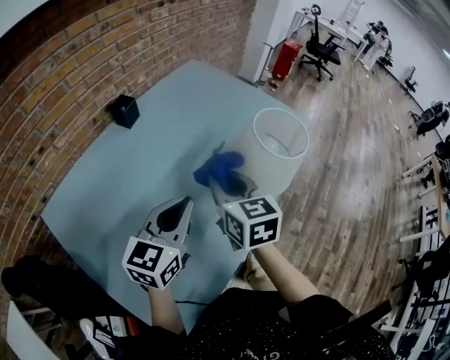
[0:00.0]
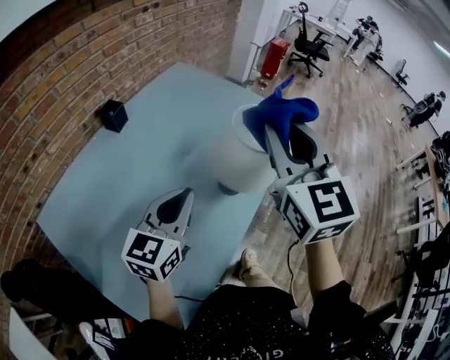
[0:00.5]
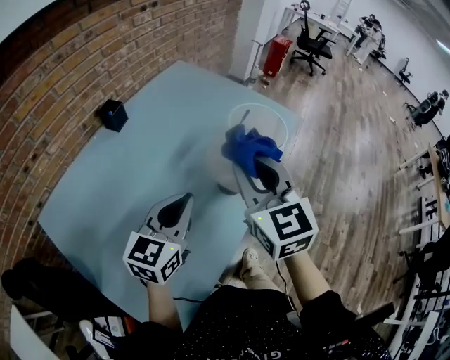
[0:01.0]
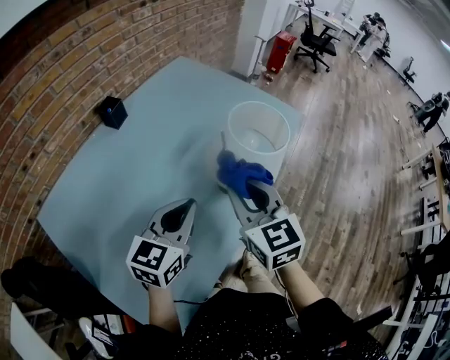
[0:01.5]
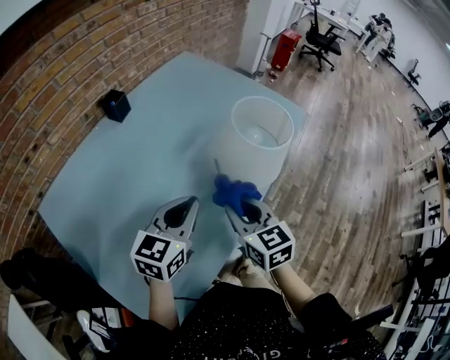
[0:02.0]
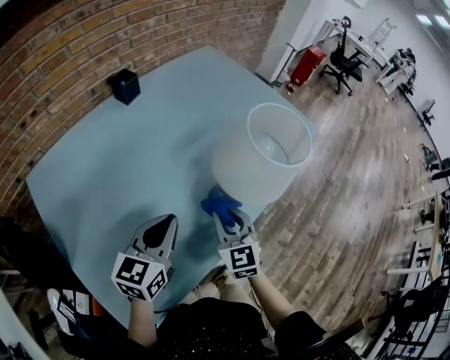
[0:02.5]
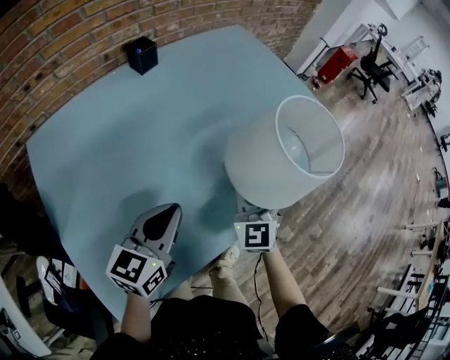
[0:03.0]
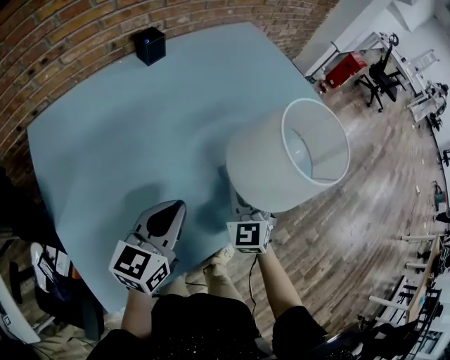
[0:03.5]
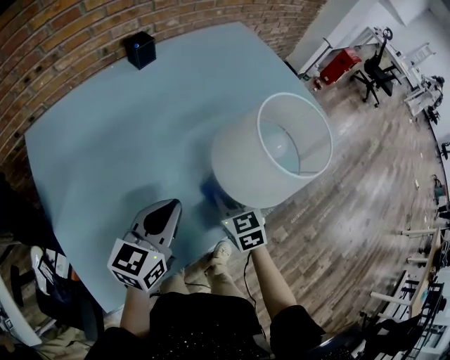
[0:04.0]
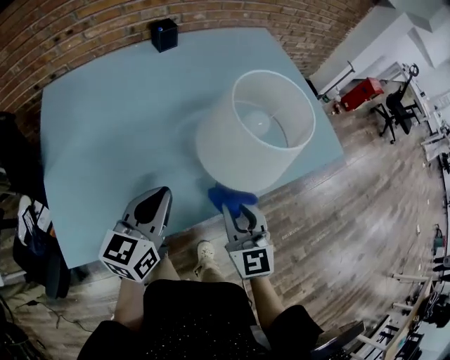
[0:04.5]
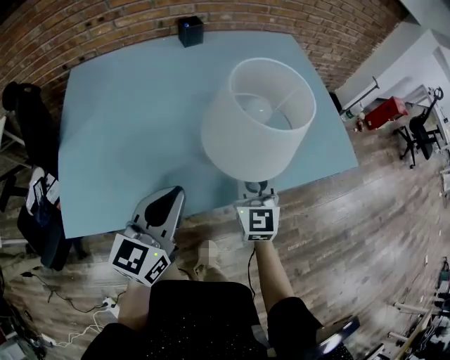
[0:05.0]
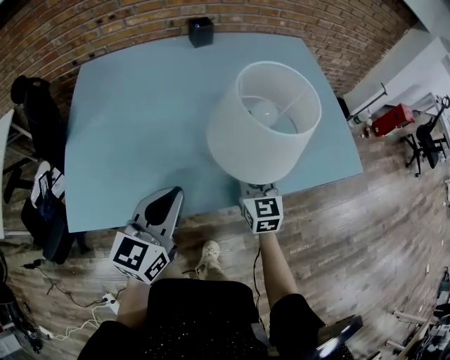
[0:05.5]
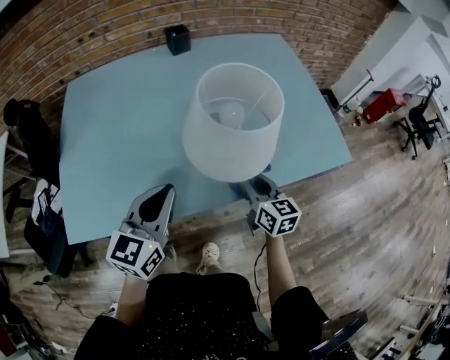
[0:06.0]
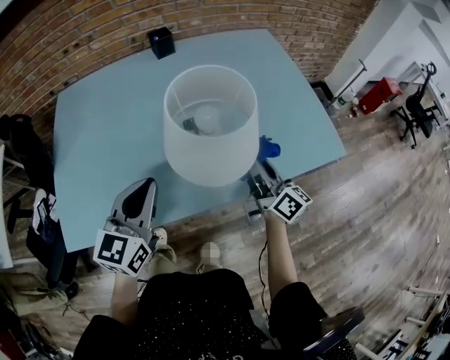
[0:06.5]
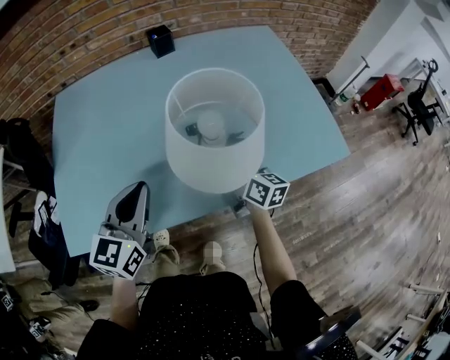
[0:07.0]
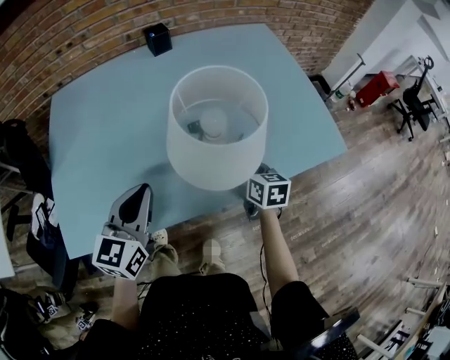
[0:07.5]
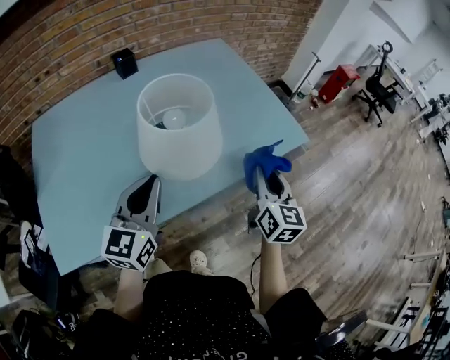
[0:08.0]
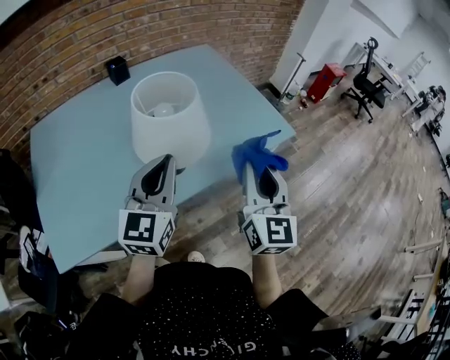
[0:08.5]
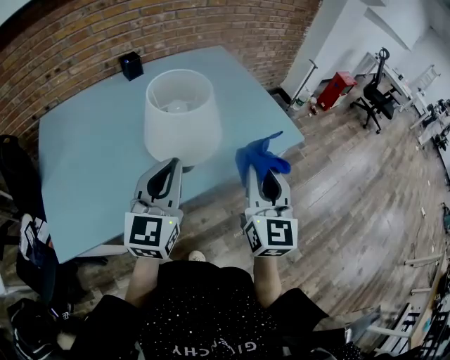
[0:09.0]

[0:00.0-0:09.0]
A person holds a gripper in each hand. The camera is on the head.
0:00.0 to 0:02.0: The left gripper goes approximately 5 cm to the right, while the right gripper travels to the right and backward by about 10 cm, and goes upward and returns, approximately 20 cm each way.
0:02.0 to 0:04.5: The right gripper moves about 15 cm, and changes its angle by roughly 30 degrees; the left gripper travels downward by some 5 cm, and changes its angle by approximately 40 degrees.
0:04.5 to 0:07.0: The right gripper is displaced forward, to the right and downward by about 15 cm, and rolls clockwise, seen from behind, by approximately 50 degrees.
0:07.0 to 0:09.0: The left gripper moves some 15 cm, while the right gripper shifts by about 30 cm, and rotates roughly 60 degrees.

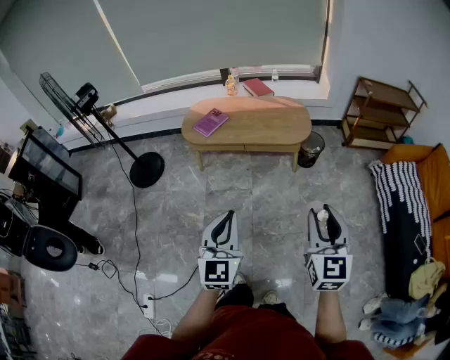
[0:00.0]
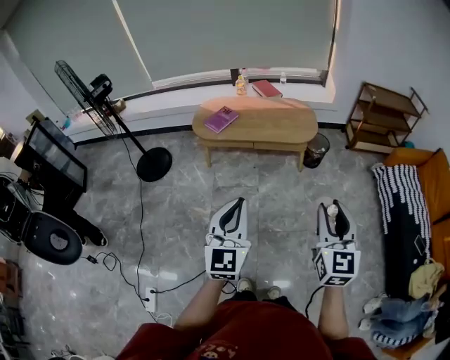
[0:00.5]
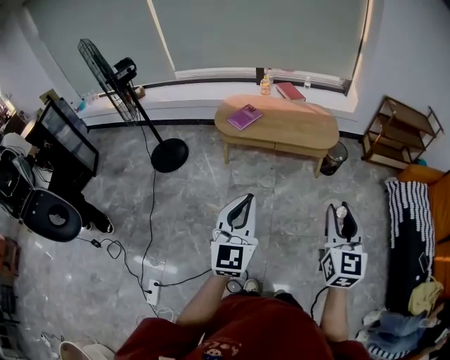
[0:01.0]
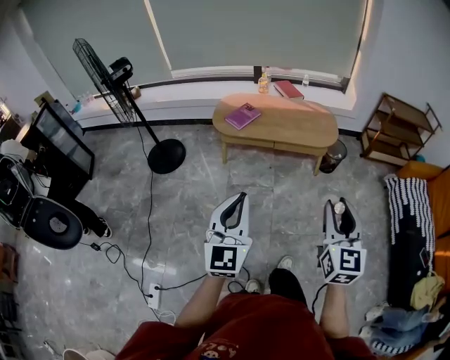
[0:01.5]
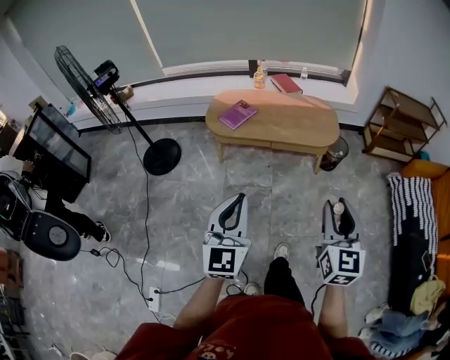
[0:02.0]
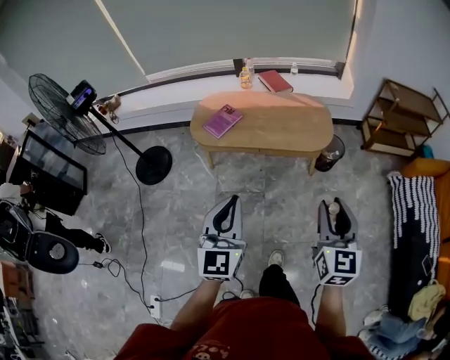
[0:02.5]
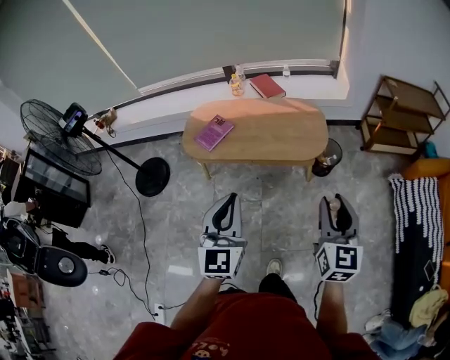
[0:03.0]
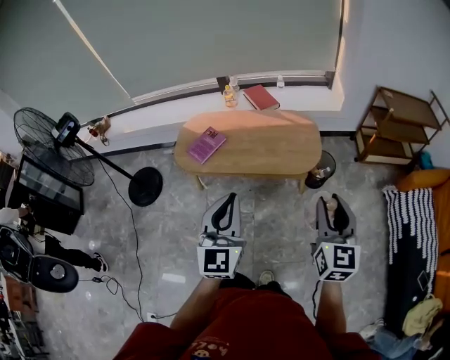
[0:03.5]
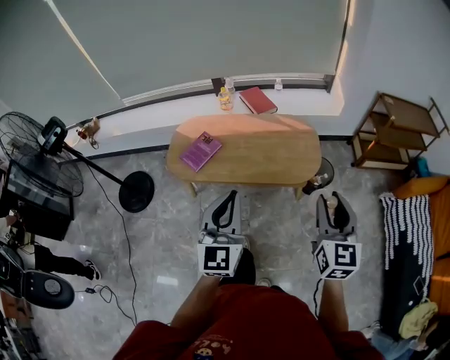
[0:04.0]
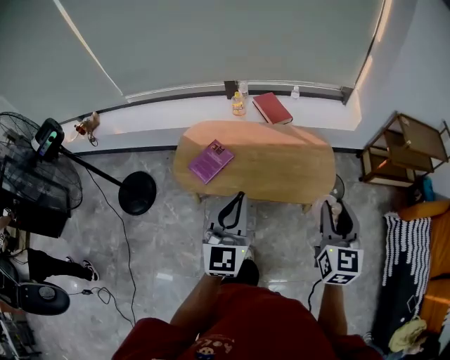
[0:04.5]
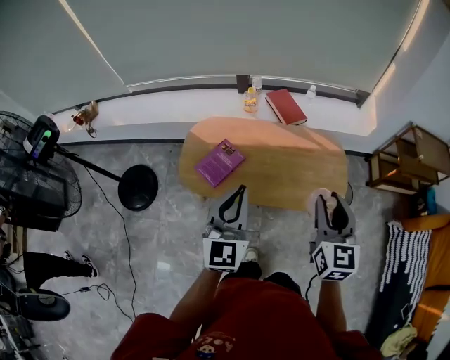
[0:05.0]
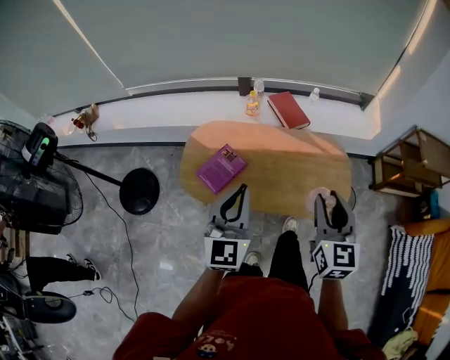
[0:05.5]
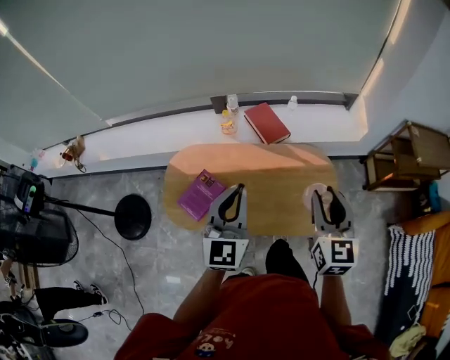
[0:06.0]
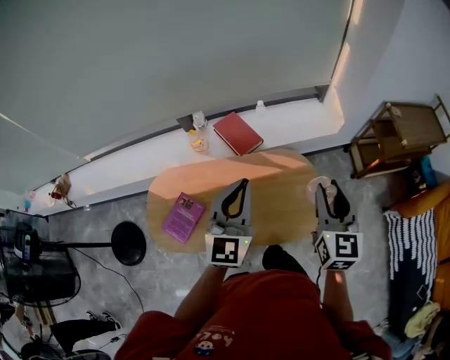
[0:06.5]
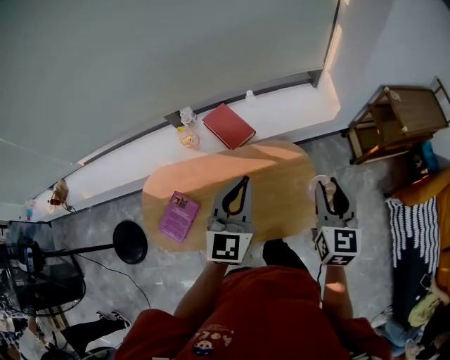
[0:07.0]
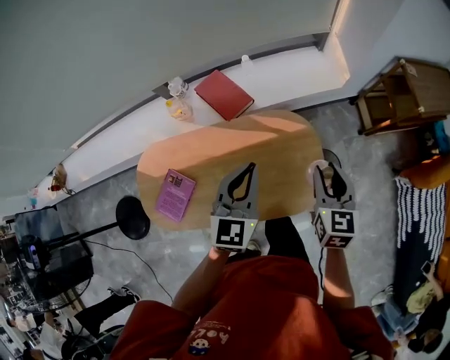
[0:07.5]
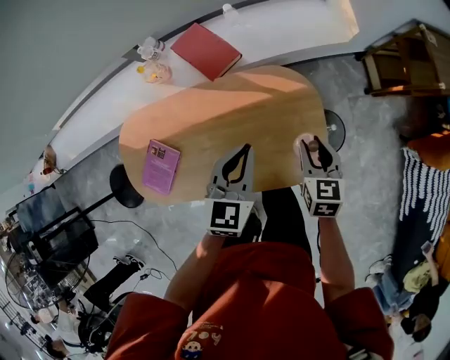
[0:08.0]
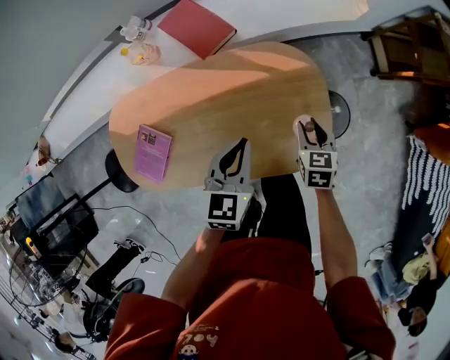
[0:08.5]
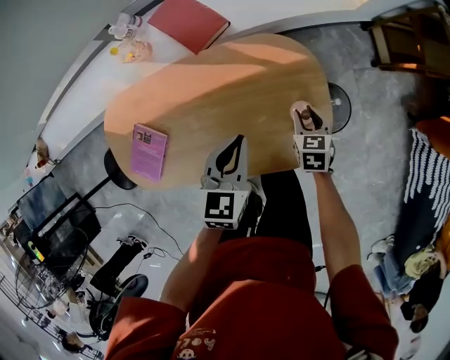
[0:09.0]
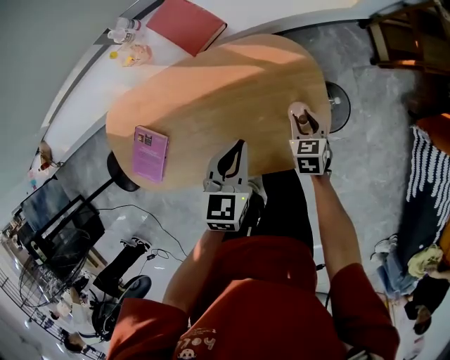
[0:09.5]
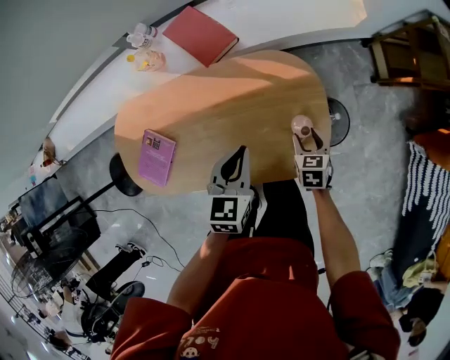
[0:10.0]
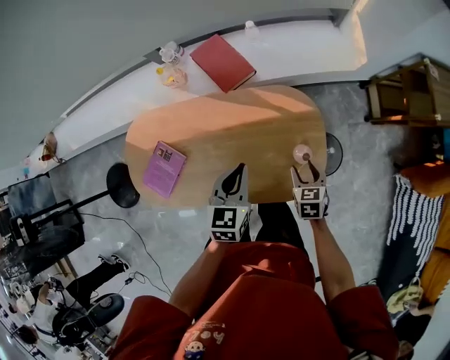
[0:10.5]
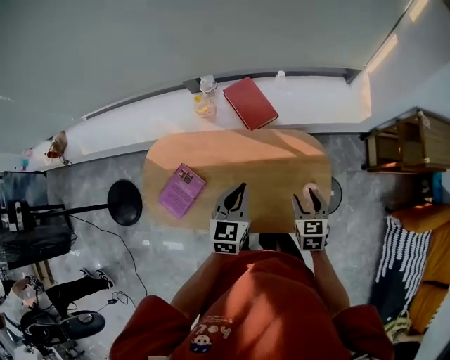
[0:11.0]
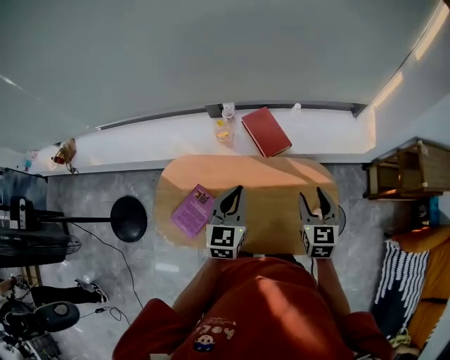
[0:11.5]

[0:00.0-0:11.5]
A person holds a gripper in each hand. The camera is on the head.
0:00.0 to 0:02.0: The right gripper shifts some 10 cm to the left and forward. Meanwhile the left gripper moves to the left, about 10 cm.
0:02.0 to 0:04.0: Both grippers travel together forward, about 35 cm.
0:04.0 to 0:06.0: The grippers both shift forward by roughly 40 cm.
0:06.0 to 0:07.5: The right gripper moves to the right, downward and forward, some 25 cm, and rotates approximately 20 degrees. The left gripper travels to the right, forward and downward by approximately 30 cm, and turns by about 20 degrees.
0:07.5 to 0:09.5: The right gripper moves downward, some 35 cm, and swivels roughly 30 degrees. Meanwhile the left gripper shifts some 20 cm downward, and rotates some 30 degrees.
0:09.5 to 0:11.5: The left gripper travels to the left and upward by approximately 35 cm, and swivels about 30 degrees, while the right gripper moves upward and to the left, approximately 40 cm, and changes its angle by about 30 degrees.

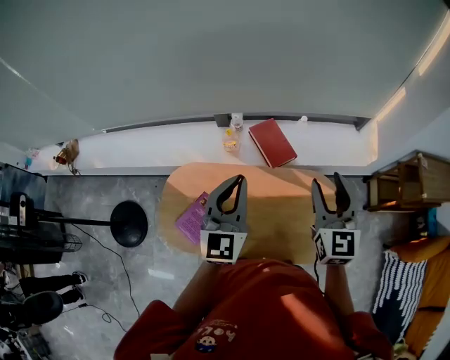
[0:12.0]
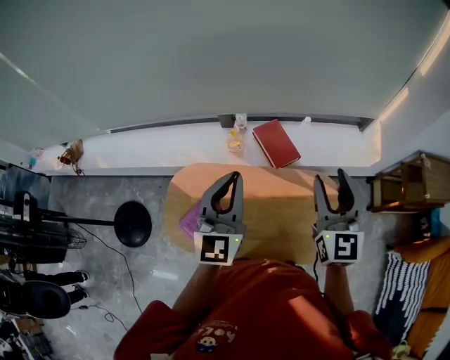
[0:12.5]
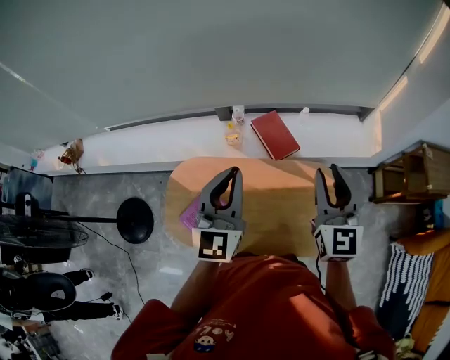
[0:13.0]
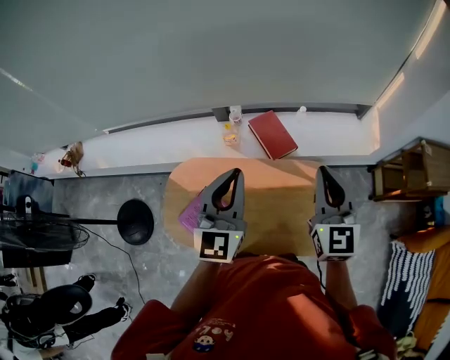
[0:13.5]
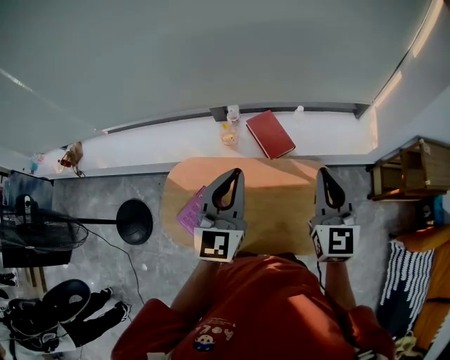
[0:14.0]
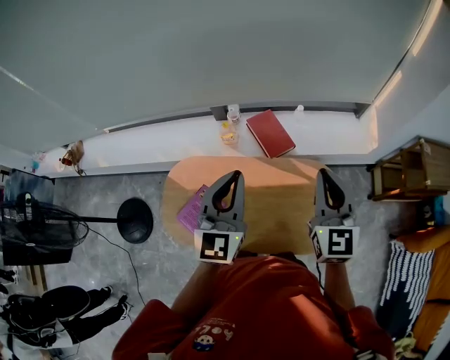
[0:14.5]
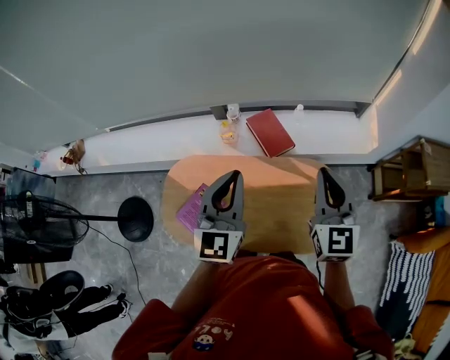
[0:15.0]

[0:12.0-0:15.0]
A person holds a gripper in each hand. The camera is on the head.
0:12.0 to 0:13.5: The right gripper closes.
0:13.5 to 0:15.0: The right gripper moves roughly 5 cm. Meanwhile the left gripper moves about 5 cm.

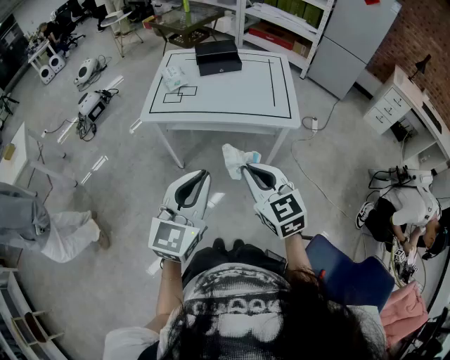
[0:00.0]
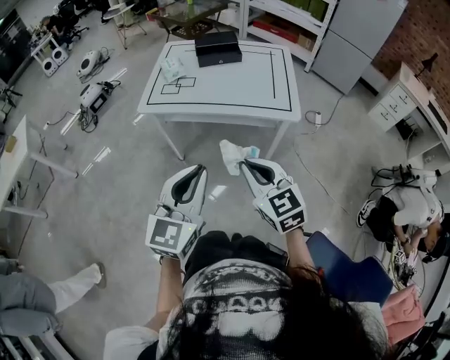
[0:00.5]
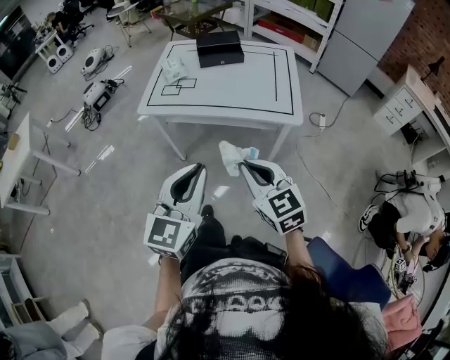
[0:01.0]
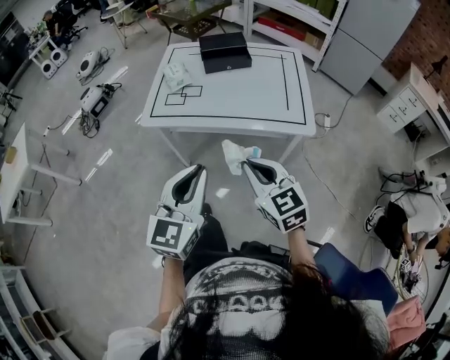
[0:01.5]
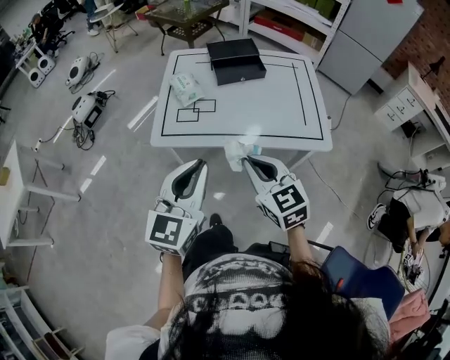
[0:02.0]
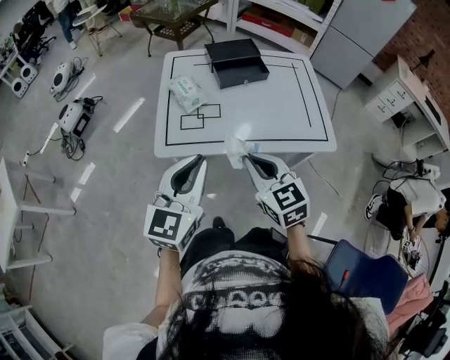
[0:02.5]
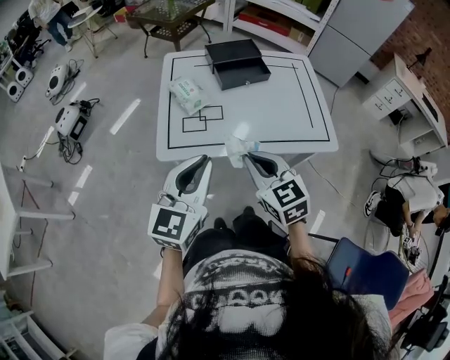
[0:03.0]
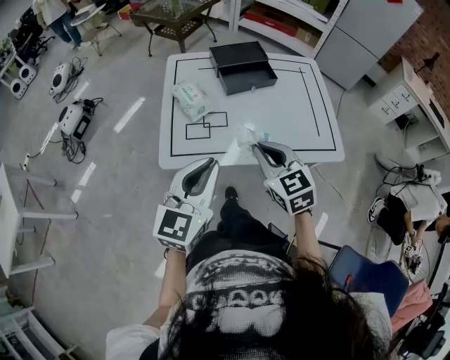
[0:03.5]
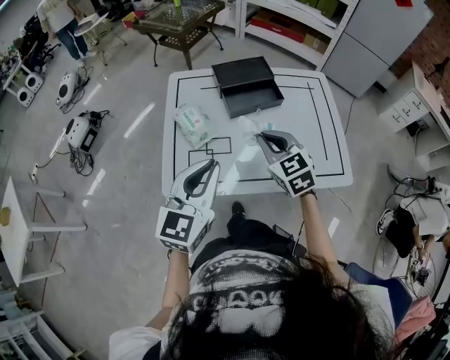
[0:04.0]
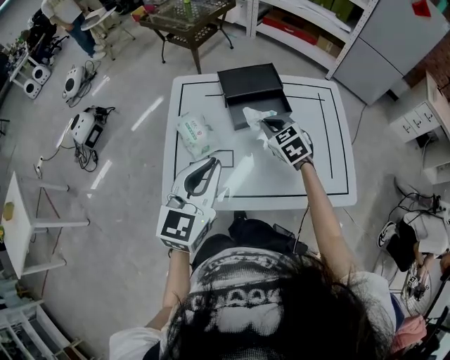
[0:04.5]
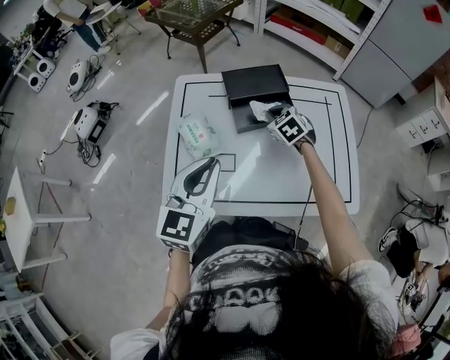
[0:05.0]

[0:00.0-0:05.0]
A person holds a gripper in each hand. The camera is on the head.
0:00.0 to 0:02.5: The grippers both shift forward and to the left by about 35 cm.
0:02.5 to 0:05.0: The left gripper shifts approximately 25 cm forward. The right gripper travels forward by approximately 50 cm, and turns by some 30 degrees.
